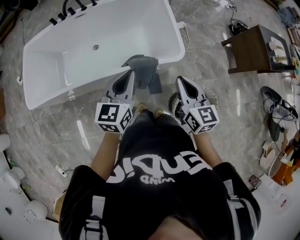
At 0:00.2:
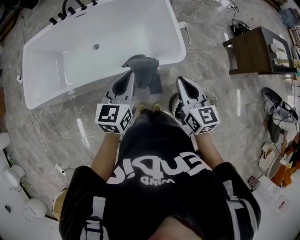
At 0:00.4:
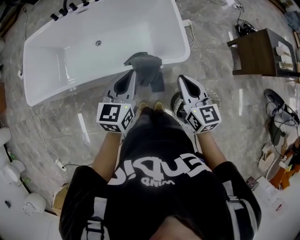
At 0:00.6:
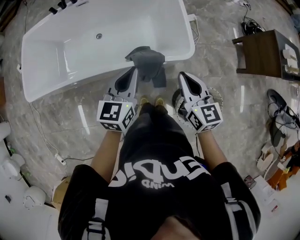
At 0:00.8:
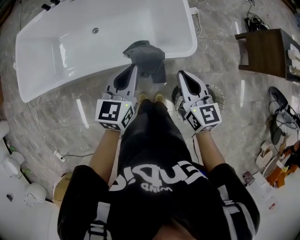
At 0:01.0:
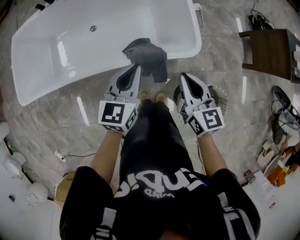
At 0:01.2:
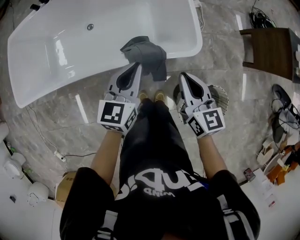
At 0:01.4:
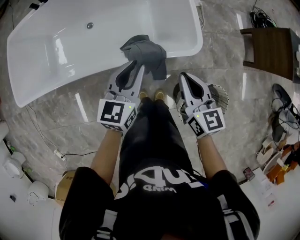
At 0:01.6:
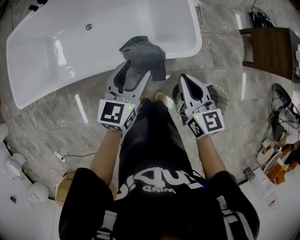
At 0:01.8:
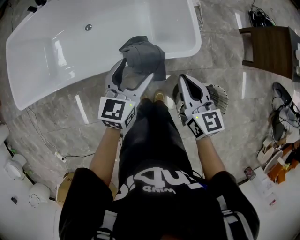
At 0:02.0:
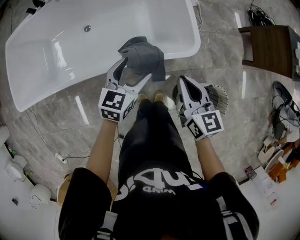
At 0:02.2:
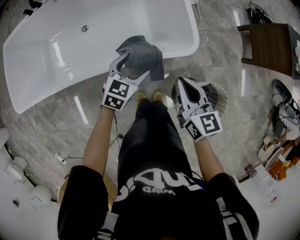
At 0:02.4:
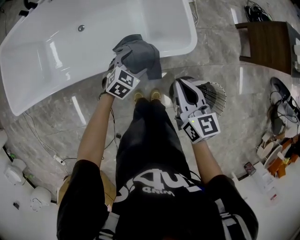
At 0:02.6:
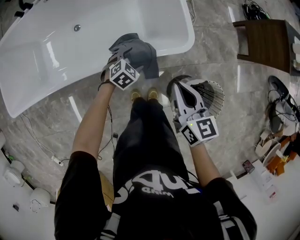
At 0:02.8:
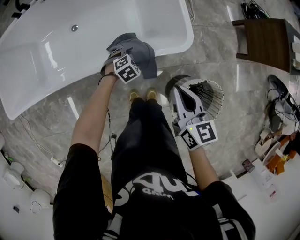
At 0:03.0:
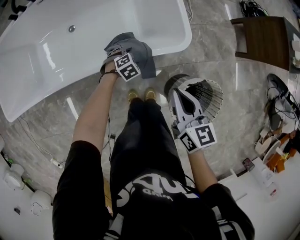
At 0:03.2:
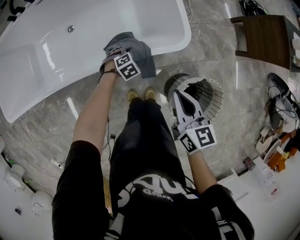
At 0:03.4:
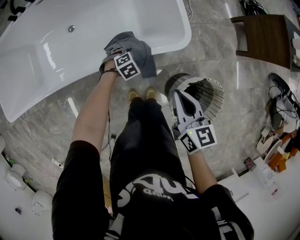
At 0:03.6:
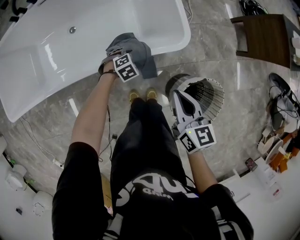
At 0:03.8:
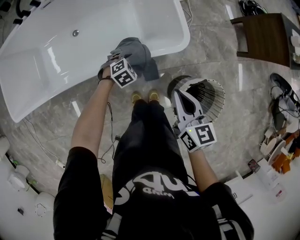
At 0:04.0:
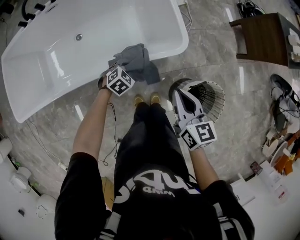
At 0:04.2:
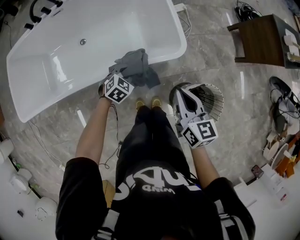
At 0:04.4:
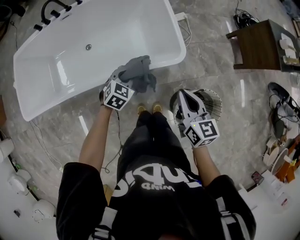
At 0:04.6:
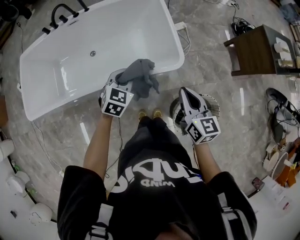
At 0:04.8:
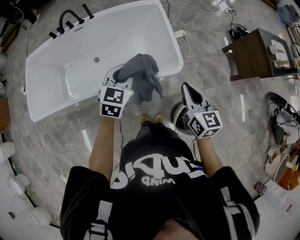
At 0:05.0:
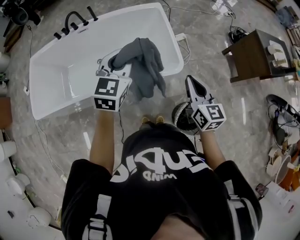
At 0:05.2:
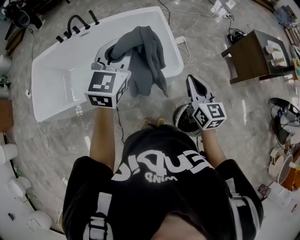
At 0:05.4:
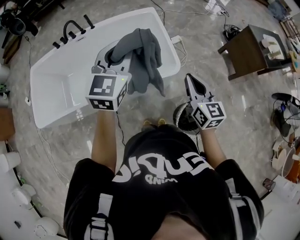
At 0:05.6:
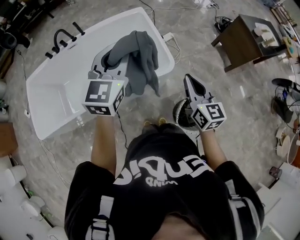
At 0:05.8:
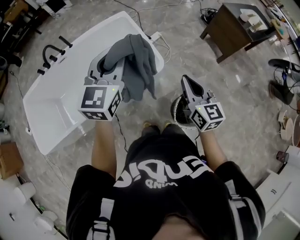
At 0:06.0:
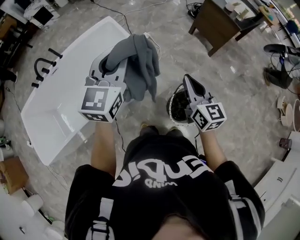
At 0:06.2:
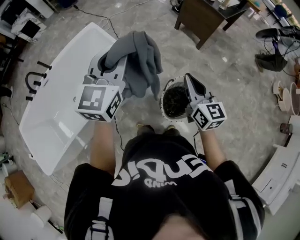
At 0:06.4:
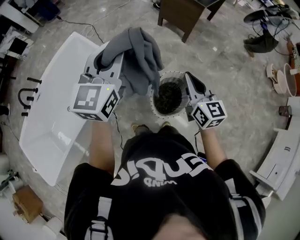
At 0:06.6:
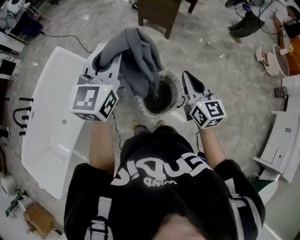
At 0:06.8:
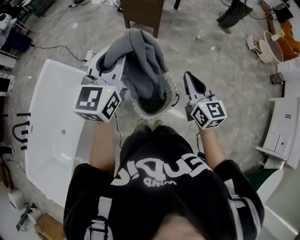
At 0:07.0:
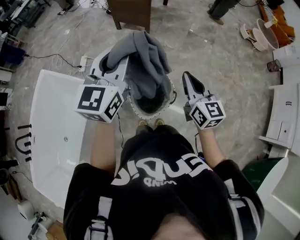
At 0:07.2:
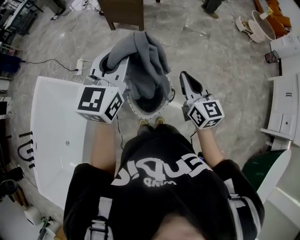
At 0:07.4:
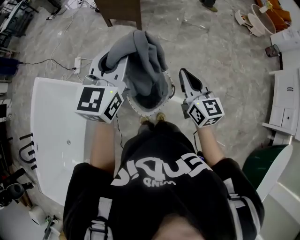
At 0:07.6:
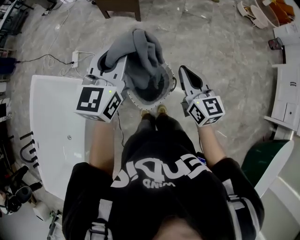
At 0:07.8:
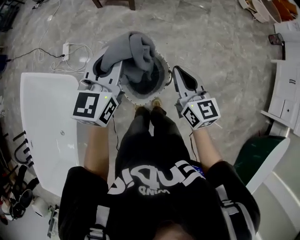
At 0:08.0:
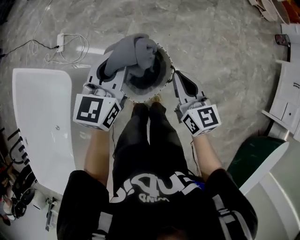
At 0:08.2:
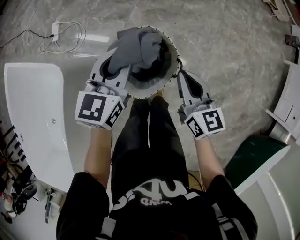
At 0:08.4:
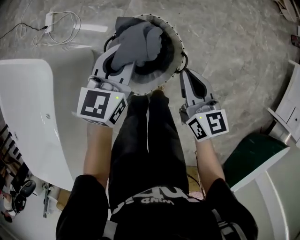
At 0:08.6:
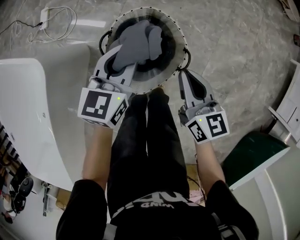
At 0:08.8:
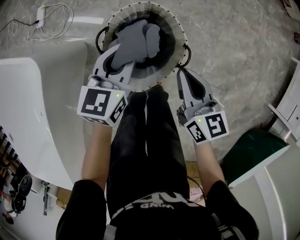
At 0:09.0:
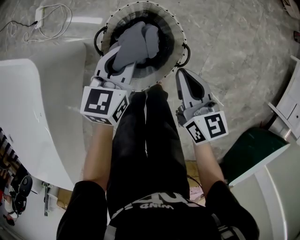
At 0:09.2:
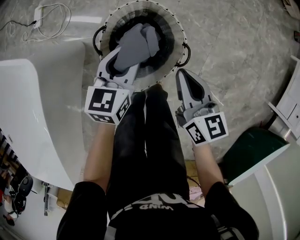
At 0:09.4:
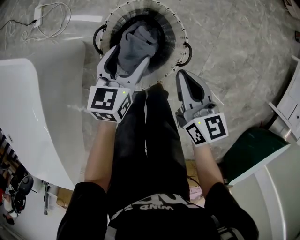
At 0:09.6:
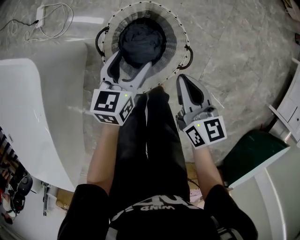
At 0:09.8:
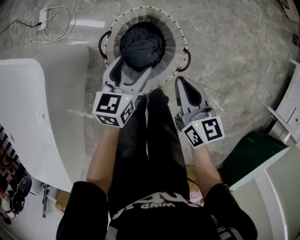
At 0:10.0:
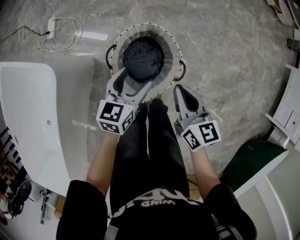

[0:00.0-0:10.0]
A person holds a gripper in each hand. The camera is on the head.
0:00.0 to 0:01.4: The grippers both shift downward and forward by approximately 20 cm.
0:01.4 to 0:02.8: The left gripper shifts roughly 30 cm downward, tips its fingers downward by about 50 degrees, and opens up, while the right gripper moves about 5 cm.
0:02.8 to 0:04.2: The right gripper ends up roughly 5 cm from where it was; the left gripper is displaced upward by some 10 cm, and closes its fingers.
0:04.2 to 0:05.8: The left gripper goes roughly 50 cm upward, and points its fingers roughly 50 degrees further upward. The right gripper shifts about 20 cm upward, and rotates some 20 degrees.
0:05.8 to 0:07.2: The pair of grippers is taken approximately 40 cm. The left gripper changes its angle by approximately 50 degrees. The right gripper turns by approximately 40 degrees.
0:07.2 to 0:08.6: Both grippers travel together downward, roughly 40 cm. The right gripper swivels some 20 degrees; the left gripper swivels approximately 30 degrees.
0:08.6 to 0:10.0: The left gripper goes some 5 cm backward, goes downward and returns, about 10 cm each way, and opens.

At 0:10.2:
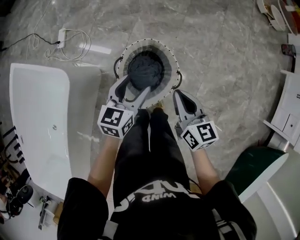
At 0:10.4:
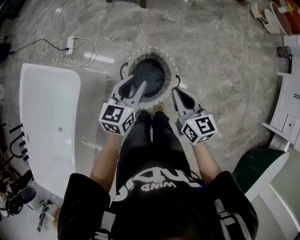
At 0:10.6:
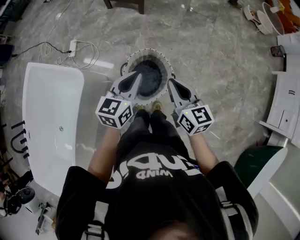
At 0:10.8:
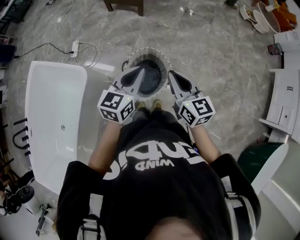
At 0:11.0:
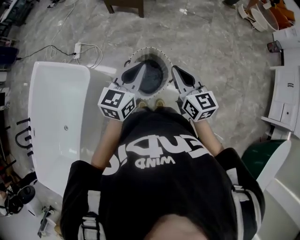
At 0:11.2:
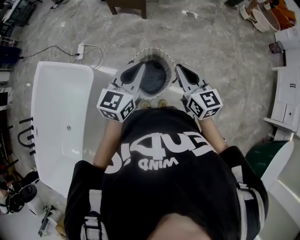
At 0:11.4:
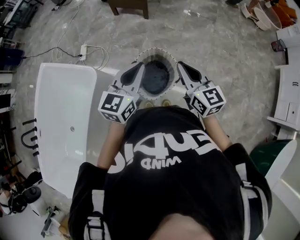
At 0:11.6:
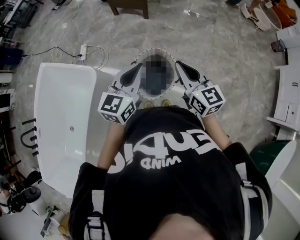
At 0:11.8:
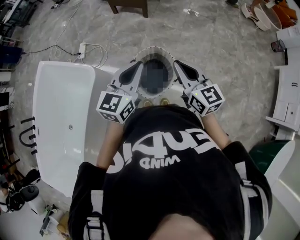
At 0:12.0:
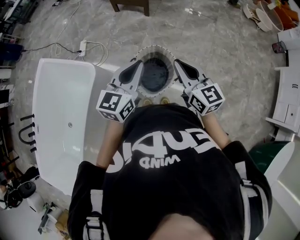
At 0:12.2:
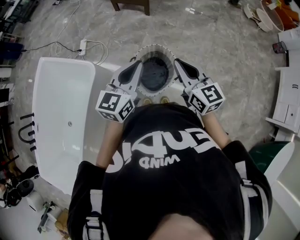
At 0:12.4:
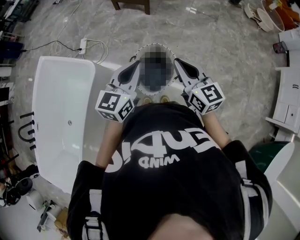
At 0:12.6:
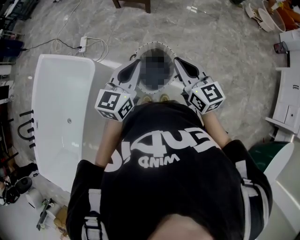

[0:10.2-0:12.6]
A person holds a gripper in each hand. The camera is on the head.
0:10.2 to 0:11.4: Both grippers move upward, approximately 25 cm. The left gripper changes its angle by roughly 20 degrees, and closes. Meanwhile the right gripper swivels about 20 degrees.
0:11.4 to 0:12.6: The grippers move only a little.

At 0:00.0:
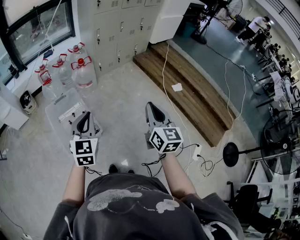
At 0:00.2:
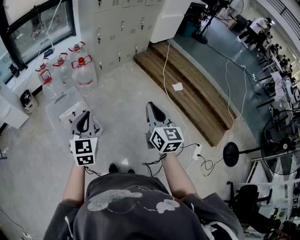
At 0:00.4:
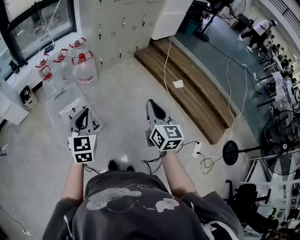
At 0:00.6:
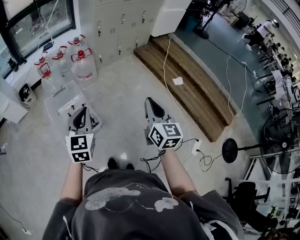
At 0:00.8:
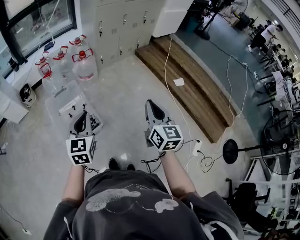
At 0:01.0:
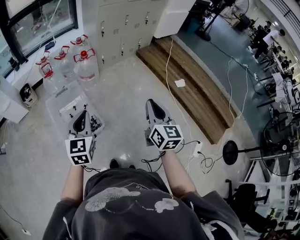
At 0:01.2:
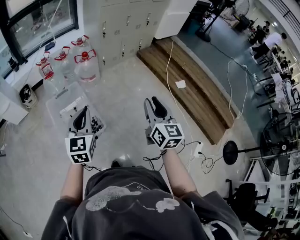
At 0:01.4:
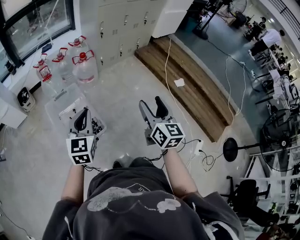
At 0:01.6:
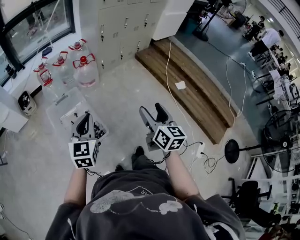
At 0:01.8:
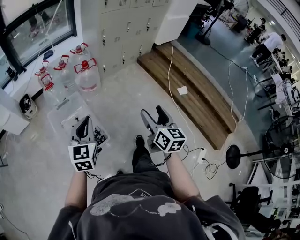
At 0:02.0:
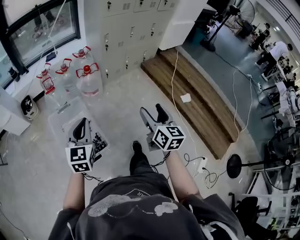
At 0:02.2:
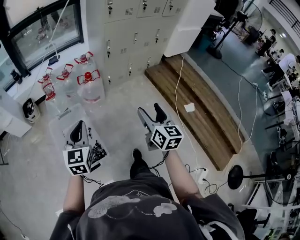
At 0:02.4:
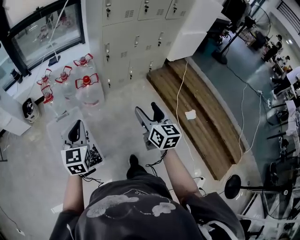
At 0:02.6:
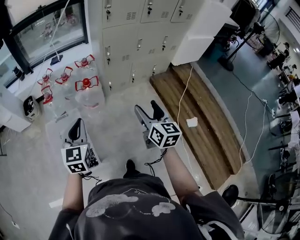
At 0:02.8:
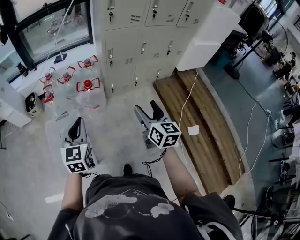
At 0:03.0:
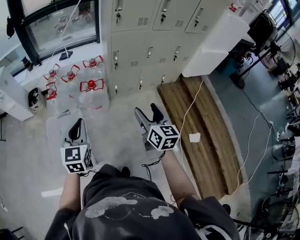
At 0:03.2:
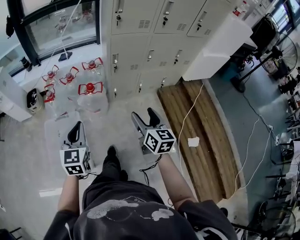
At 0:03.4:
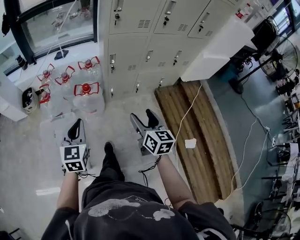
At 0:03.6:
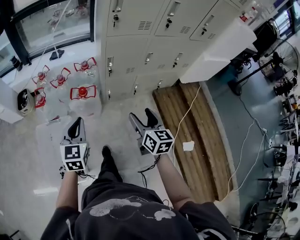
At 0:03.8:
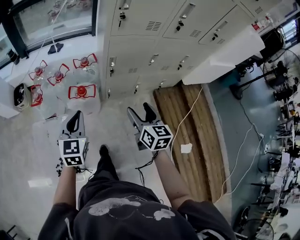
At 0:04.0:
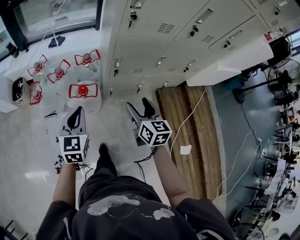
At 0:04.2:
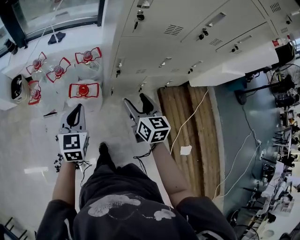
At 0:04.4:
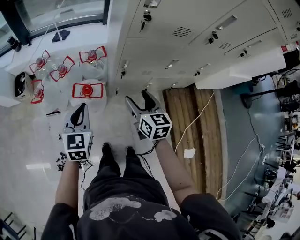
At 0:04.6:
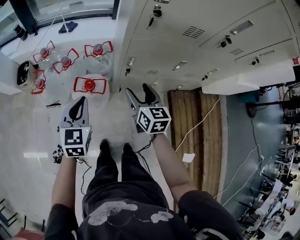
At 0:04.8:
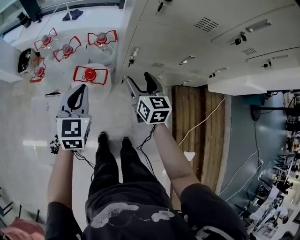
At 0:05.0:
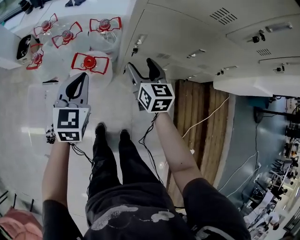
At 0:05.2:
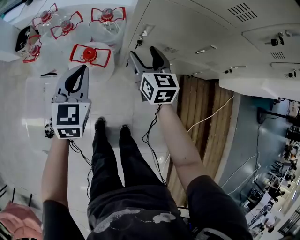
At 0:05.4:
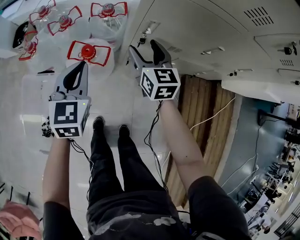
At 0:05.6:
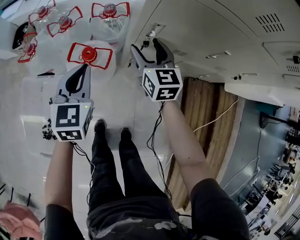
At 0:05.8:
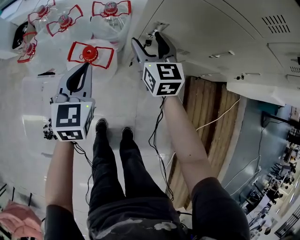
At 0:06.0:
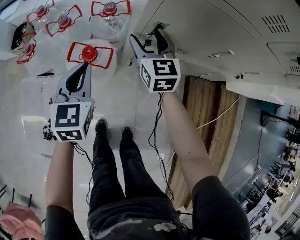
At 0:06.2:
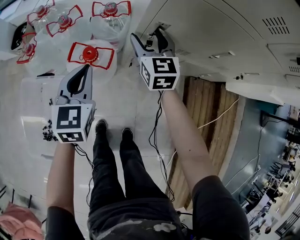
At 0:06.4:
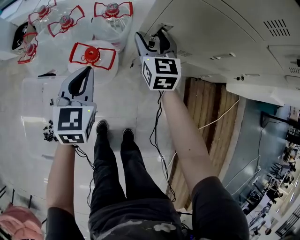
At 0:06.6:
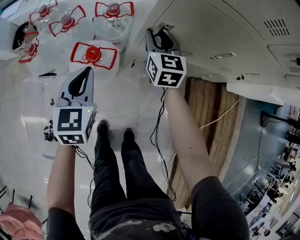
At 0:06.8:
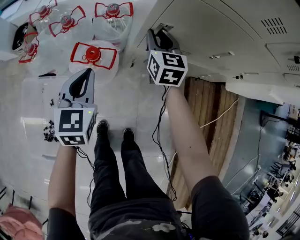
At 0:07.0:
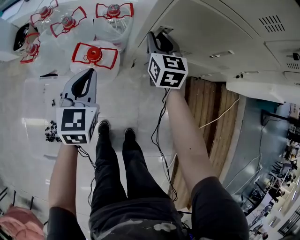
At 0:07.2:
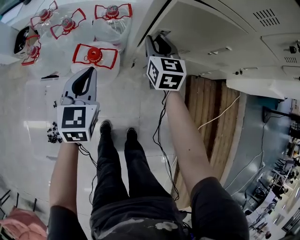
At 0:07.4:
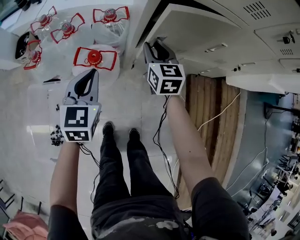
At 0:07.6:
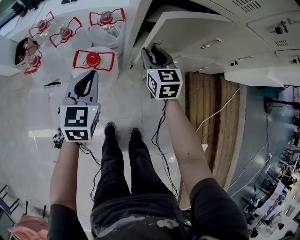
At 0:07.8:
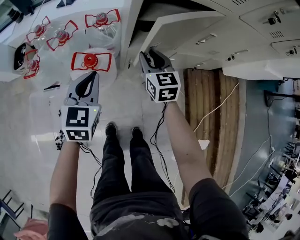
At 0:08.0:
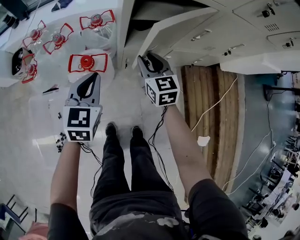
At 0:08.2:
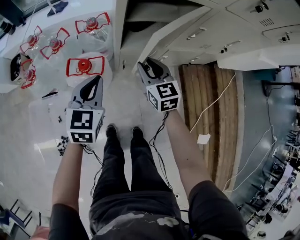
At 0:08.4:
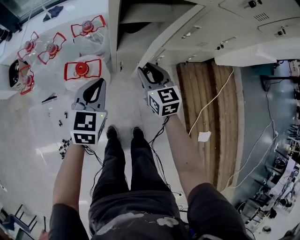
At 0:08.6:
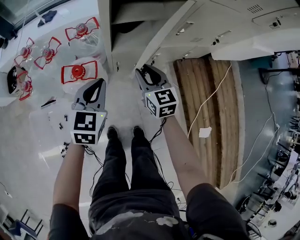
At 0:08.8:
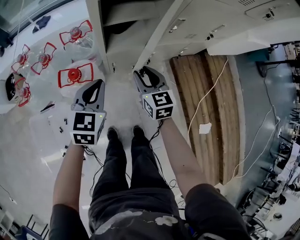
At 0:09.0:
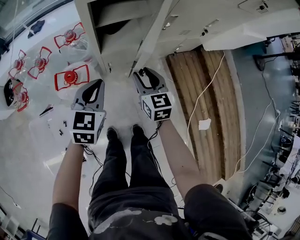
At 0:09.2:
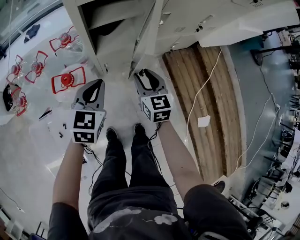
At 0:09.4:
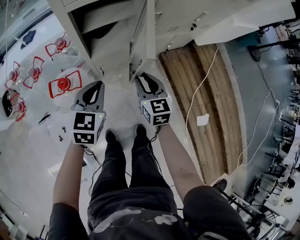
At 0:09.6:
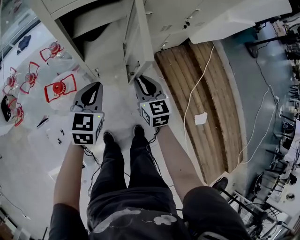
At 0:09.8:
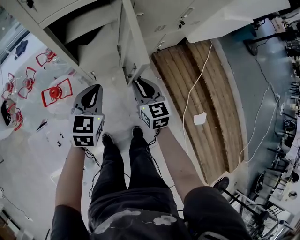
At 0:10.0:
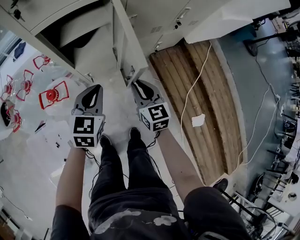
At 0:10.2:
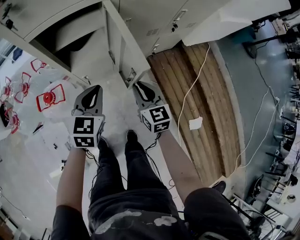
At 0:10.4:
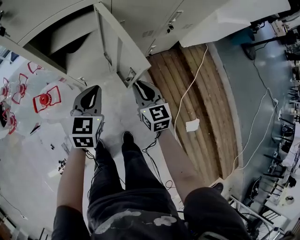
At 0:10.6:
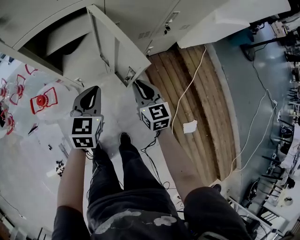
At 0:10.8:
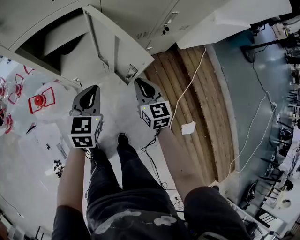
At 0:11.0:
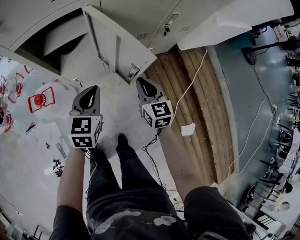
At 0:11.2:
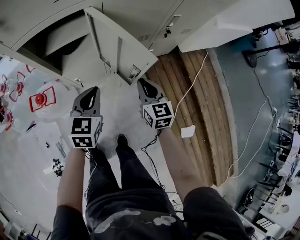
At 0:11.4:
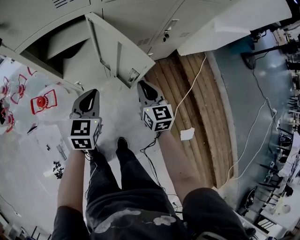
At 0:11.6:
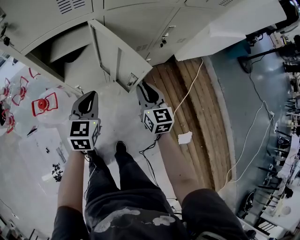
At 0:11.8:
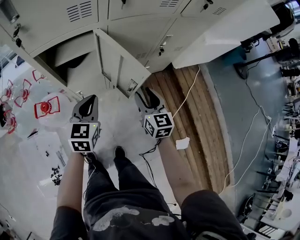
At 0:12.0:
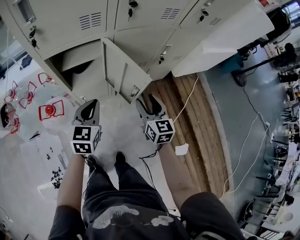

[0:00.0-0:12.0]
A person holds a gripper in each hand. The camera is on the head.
0:00.0 to 0:01.6: Both grippers move to the left and forward, approximately 10 cm. The right gripper opens.
0:01.6 to 0:03.0: The right gripper is displaced forward by about 40 cm, and changes its angle by approximately 20 degrees, while the left gripper is displaced forward and to the right by roughly 30 cm, and rotates roughly 20 degrees.
0:03.0 to 0:04.4: The grippers both shift forward by roughly 35 cm.
0:04.4 to 0:06.0: The left gripper travels downward and forward by some 15 cm. The right gripper travels forward and downward by some 25 cm, and rotates about 20 degrees.
0:06.0 to 0:07.6: The right gripper travels backward by roughly 5 cm, and closes.
0:07.6 to 0:09.0: The left gripper travels to the right by about 15 cm, and changes its angle by about 20 degrees, while the right gripper is displaced to the right and backward by roughly 15 cm.
0:09.0 to 0:10.4: The grippers both shift to the right by about 20 cm.
0:10.4 to 0:12.0: The left gripper moves upward, some 5 cm. Meanwhile the right gripper moves upward and to the right, about 10 cm, and opens its fingers.
